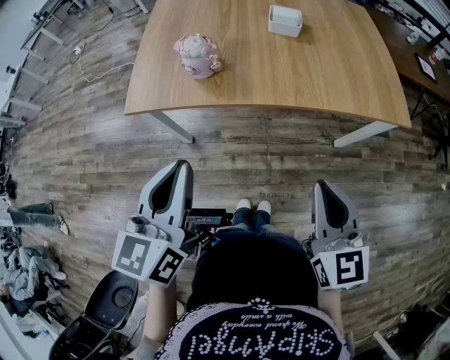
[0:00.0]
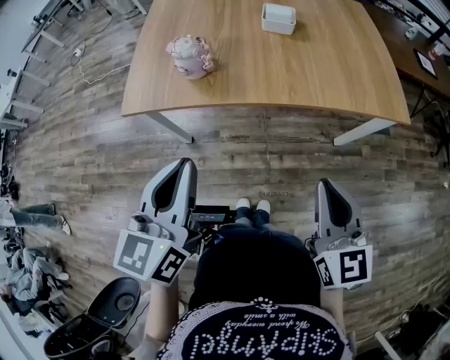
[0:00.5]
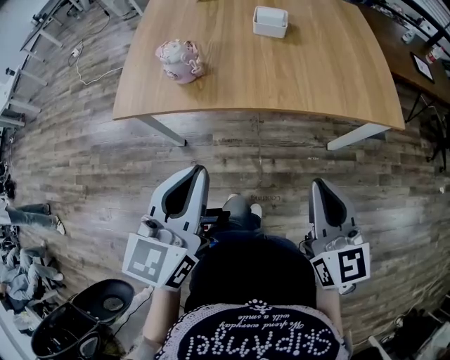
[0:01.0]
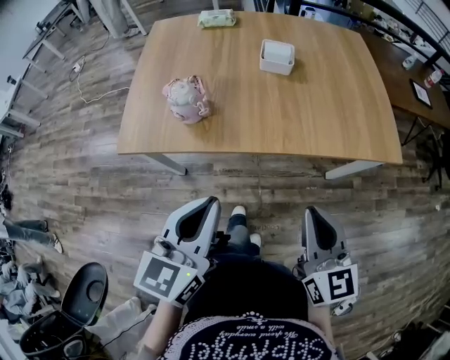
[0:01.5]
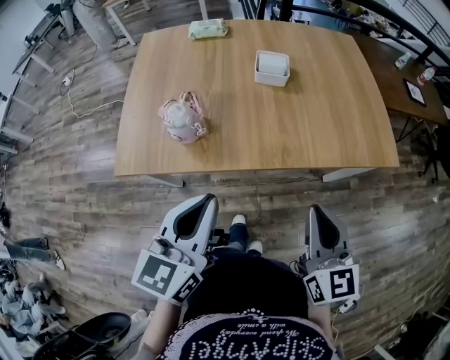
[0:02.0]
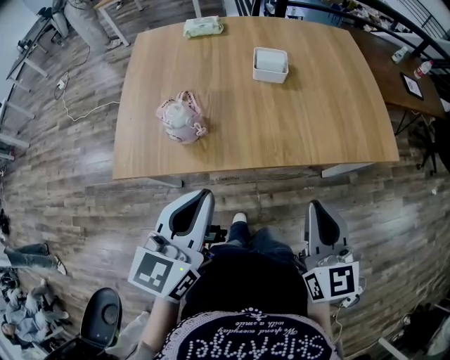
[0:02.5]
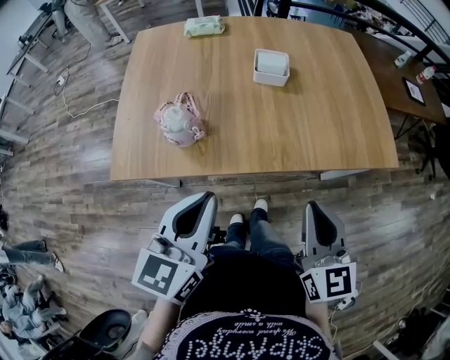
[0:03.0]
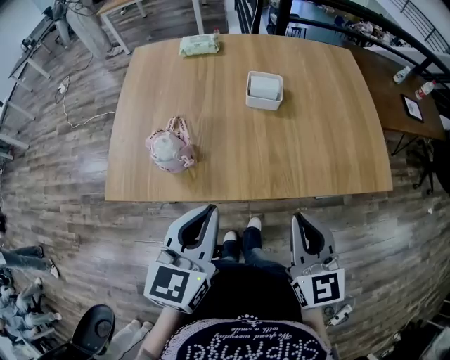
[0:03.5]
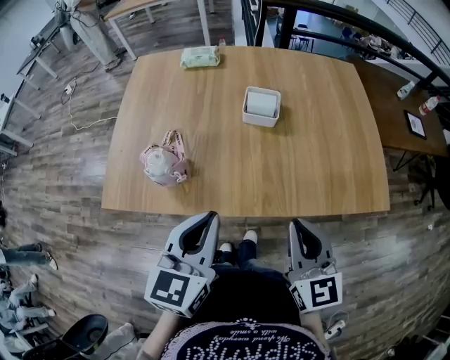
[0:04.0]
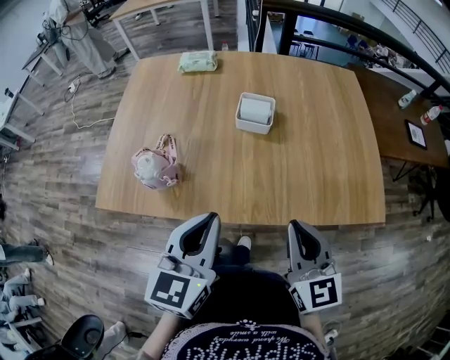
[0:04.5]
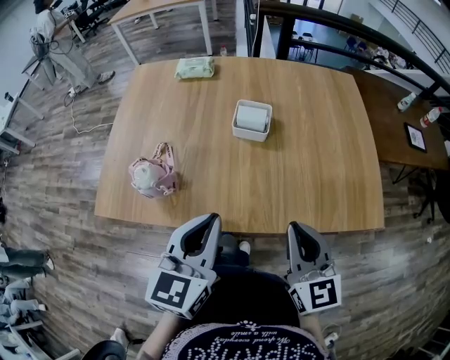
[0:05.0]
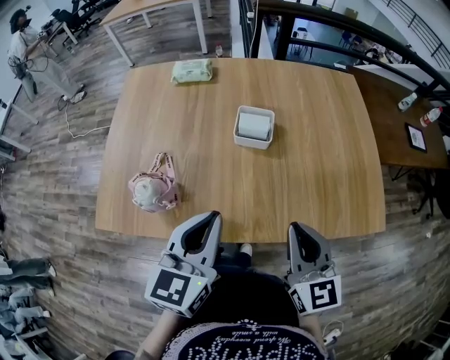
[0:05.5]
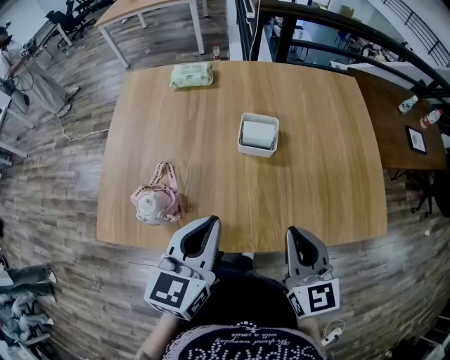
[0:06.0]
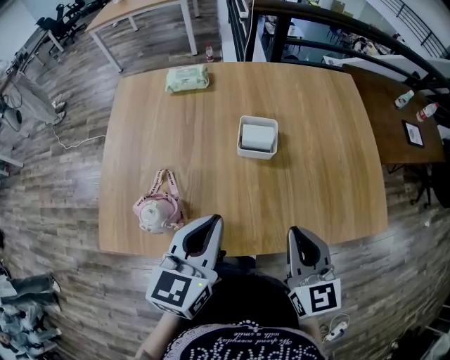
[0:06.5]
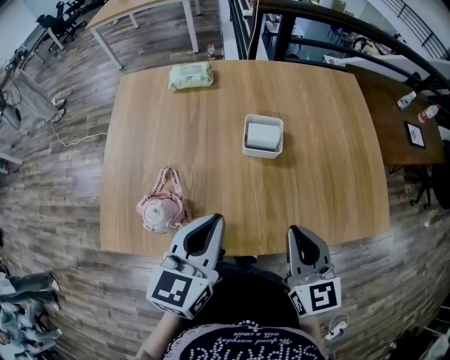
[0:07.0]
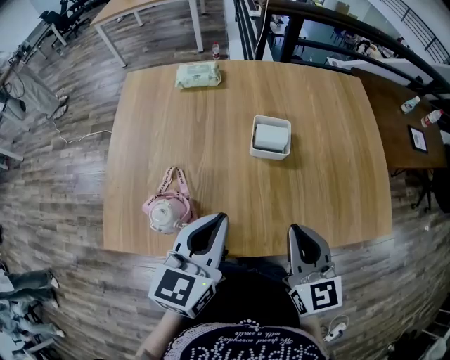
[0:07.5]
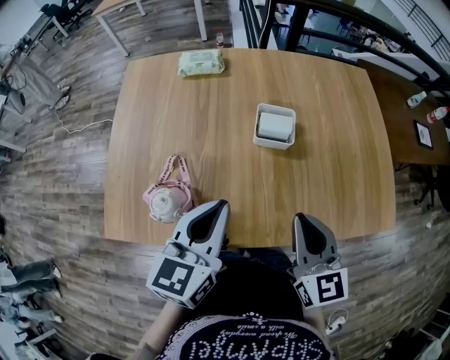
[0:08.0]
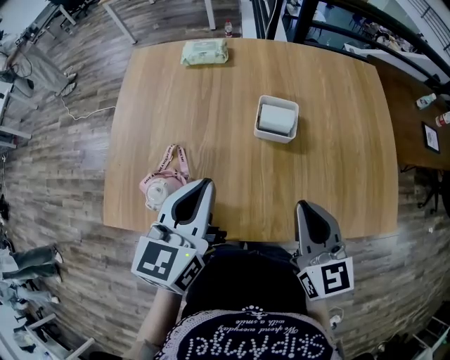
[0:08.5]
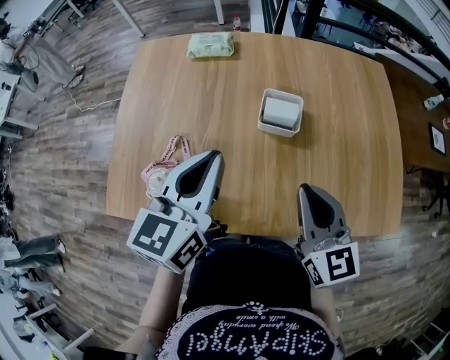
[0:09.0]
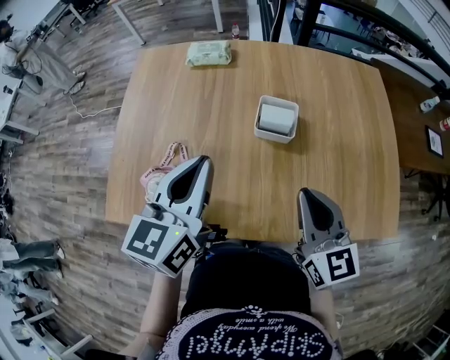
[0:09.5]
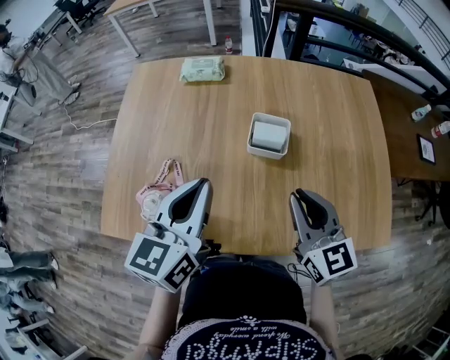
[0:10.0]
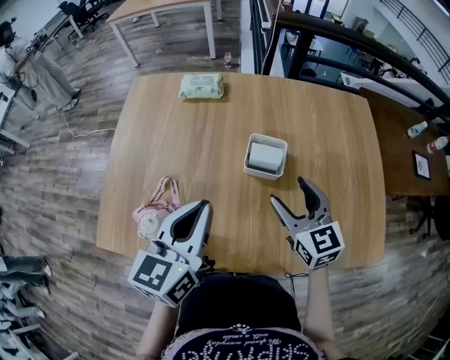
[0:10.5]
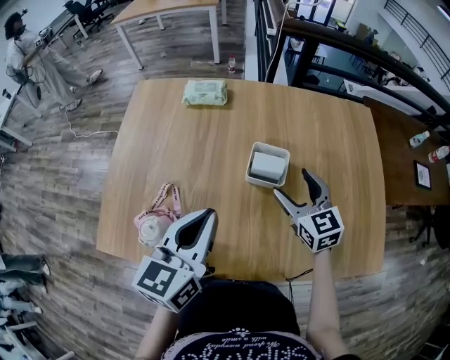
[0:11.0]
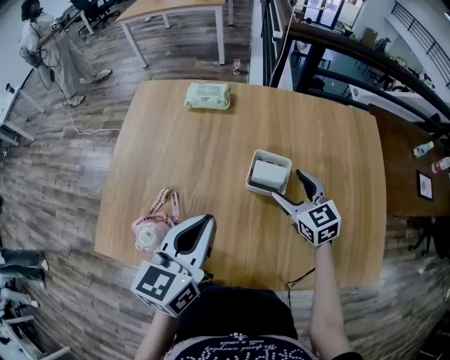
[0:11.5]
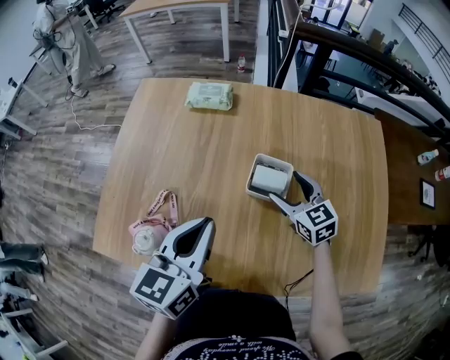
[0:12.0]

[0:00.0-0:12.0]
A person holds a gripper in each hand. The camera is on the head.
0:00.0 to 0:02.0: The left gripper moves forward and to the right, some 15 cm. The right gripper travels forward by some 10 cm.
0:02.0 to 0:04.0: The left gripper goes about 10 cm forward and to the right; the right gripper is displaced forward by about 10 cm.
0:04.0 to 0:06.0: The grippers both shift forward by about 10 cm.
0:06.0 to 0:08.0: The grippers move only a little.
0:08.0 to 0:10.0: The left gripper ends up about 5 cm from where it was. Meanwhile the right gripper goes approximately 5 cm forward.
0:10.0 to 0:12.0: The right gripper is displaced forward and downward by about 20 cm, and opens.

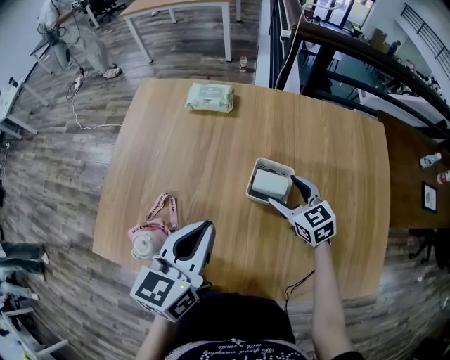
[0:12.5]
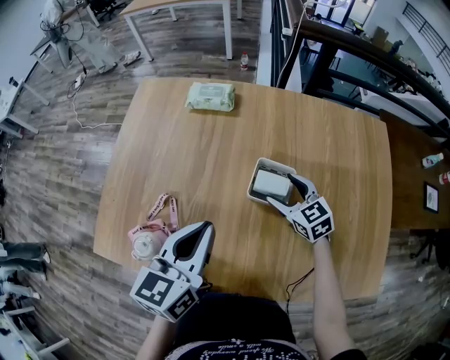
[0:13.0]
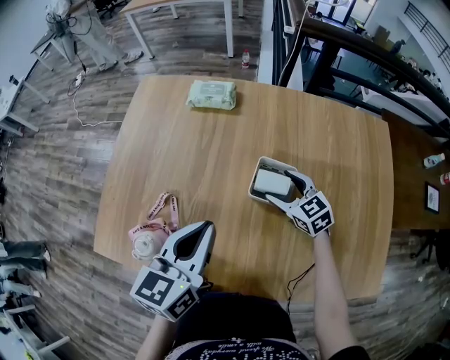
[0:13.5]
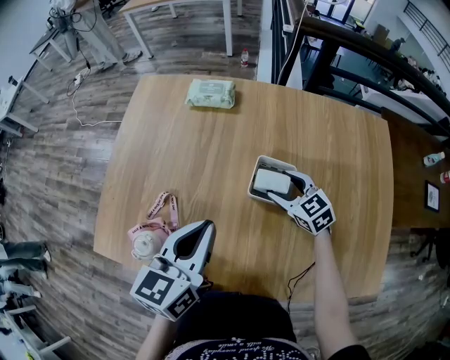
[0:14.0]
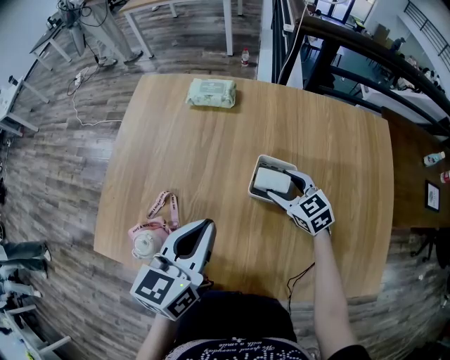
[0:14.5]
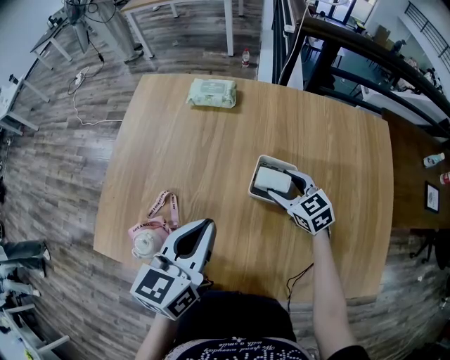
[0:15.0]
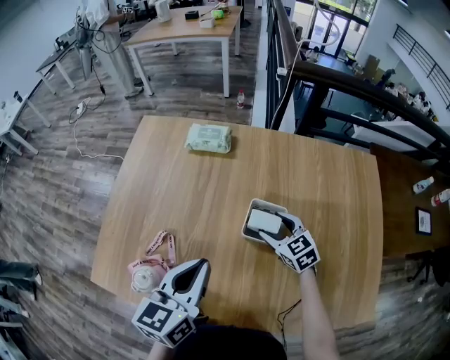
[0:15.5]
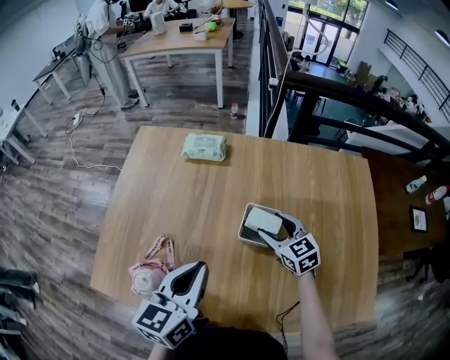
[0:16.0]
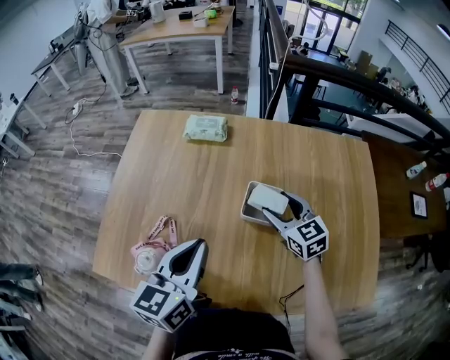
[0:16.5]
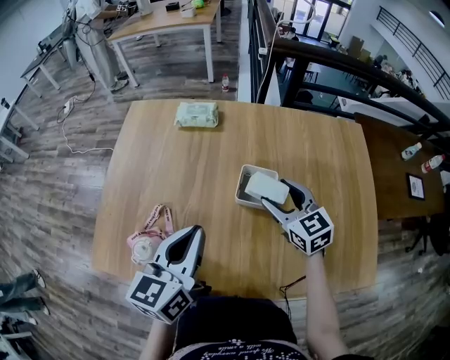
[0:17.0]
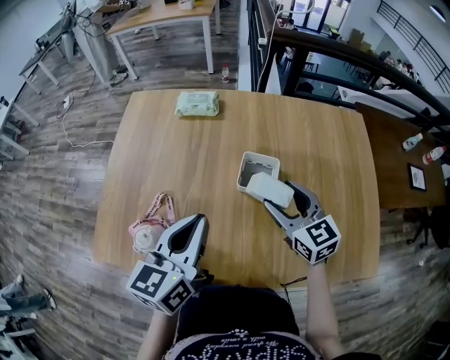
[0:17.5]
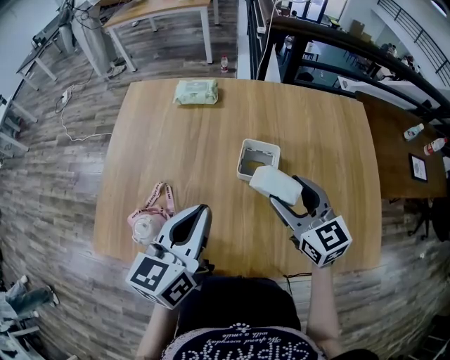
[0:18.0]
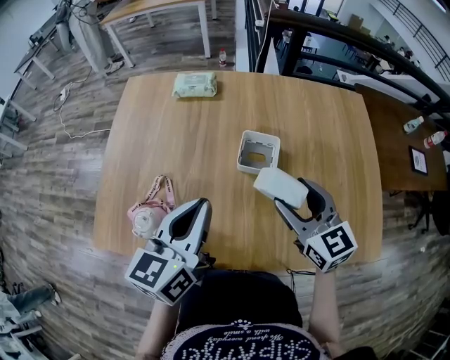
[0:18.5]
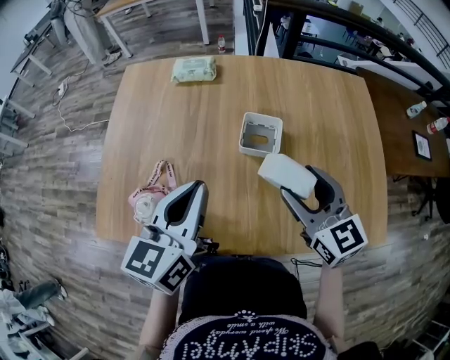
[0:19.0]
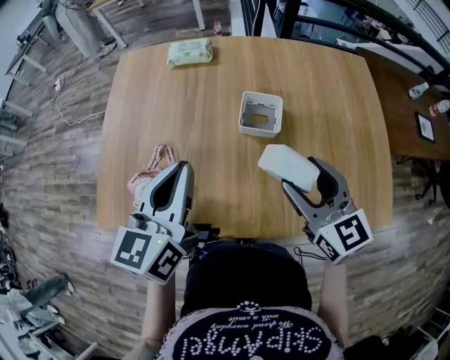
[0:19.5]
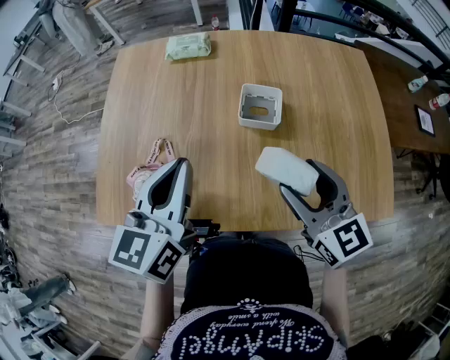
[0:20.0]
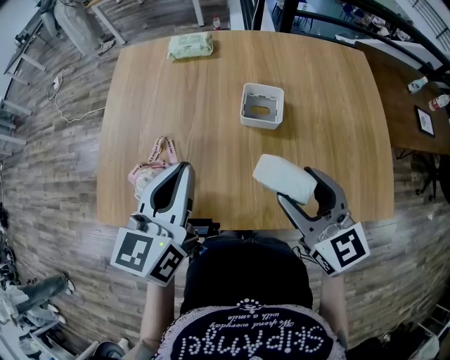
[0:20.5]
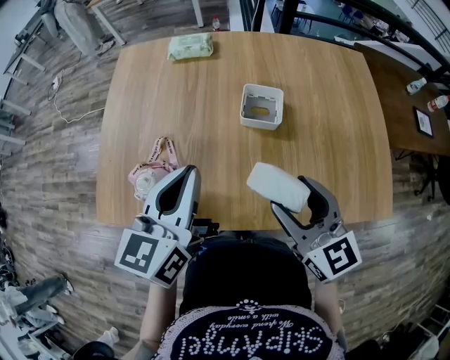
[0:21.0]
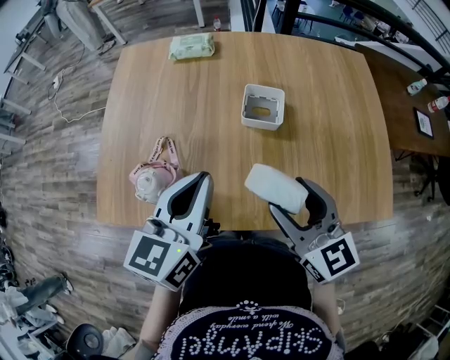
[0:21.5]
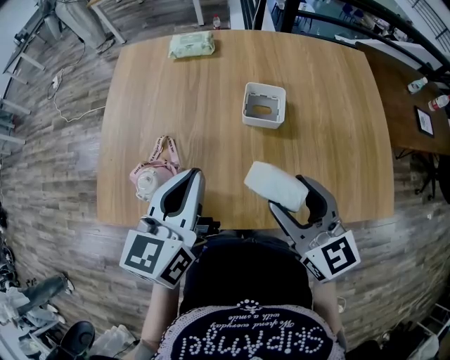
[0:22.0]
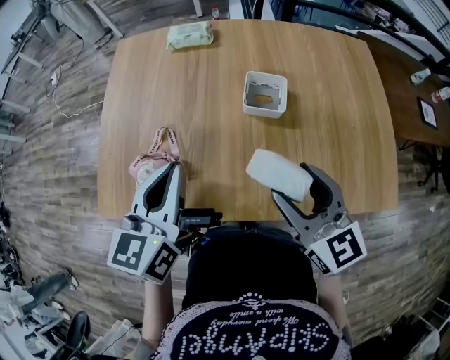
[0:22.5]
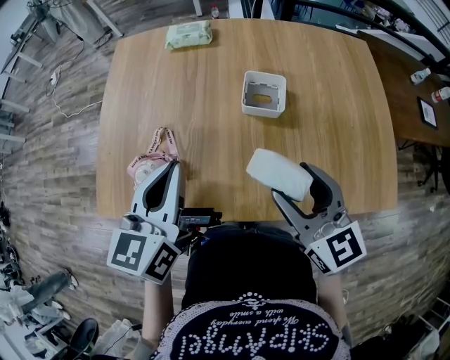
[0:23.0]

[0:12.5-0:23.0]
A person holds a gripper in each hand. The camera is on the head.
0:12.5 to 0:14.5: The grippers move only a little.
0:14.5 to 0:16.5: The right gripper is displaced upward by some 10 cm.
0:16.5 to 0:19.0: The right gripper is displaced backward and upward by about 20 cm.
0:19.0 to 0:21.0: The right gripper is displaced backward by about 10 cm.
0:21.0 to 0:23.0: The grippers make only small movements.

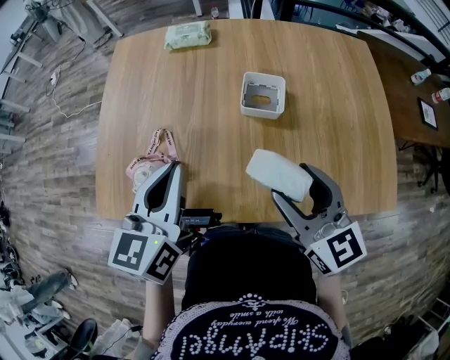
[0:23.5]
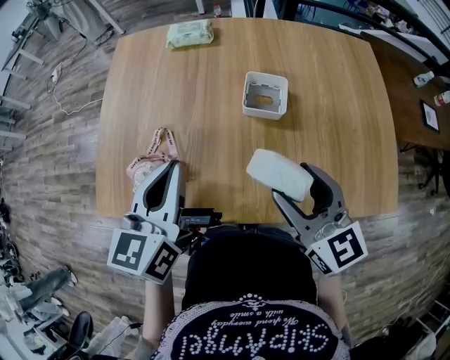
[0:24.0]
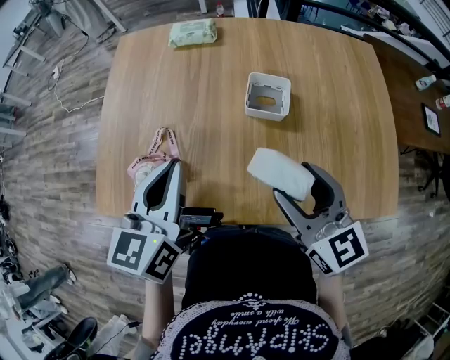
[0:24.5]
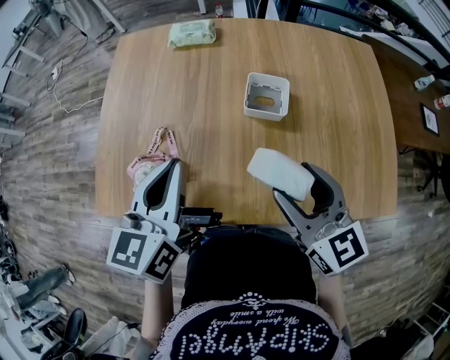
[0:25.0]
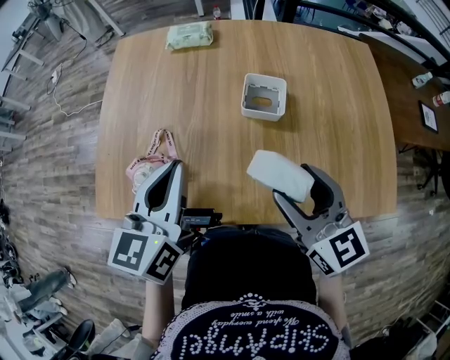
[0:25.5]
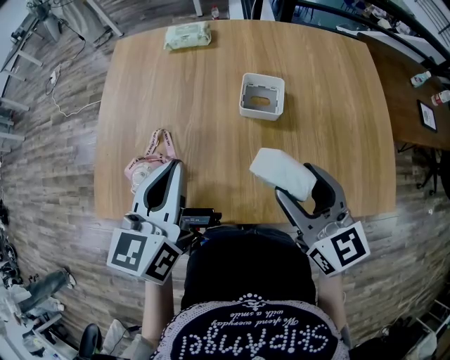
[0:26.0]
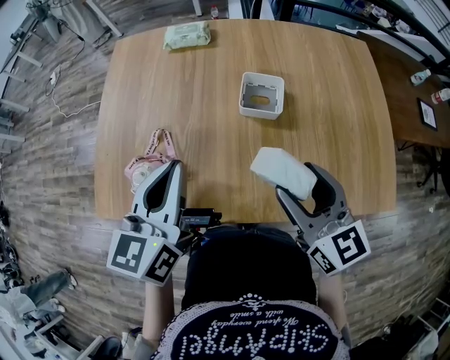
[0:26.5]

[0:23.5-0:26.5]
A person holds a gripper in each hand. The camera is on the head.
0:23.5 to 0:26.5: Both grippers stay about where they are.

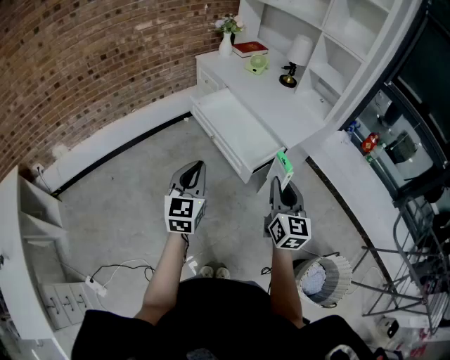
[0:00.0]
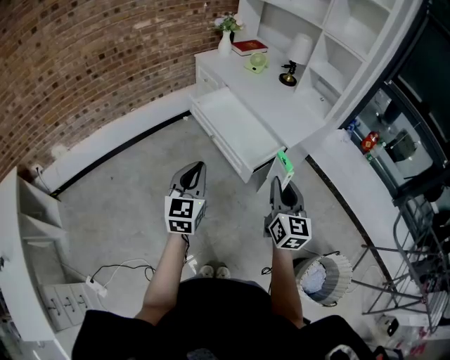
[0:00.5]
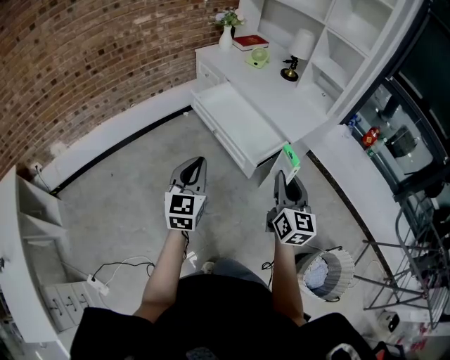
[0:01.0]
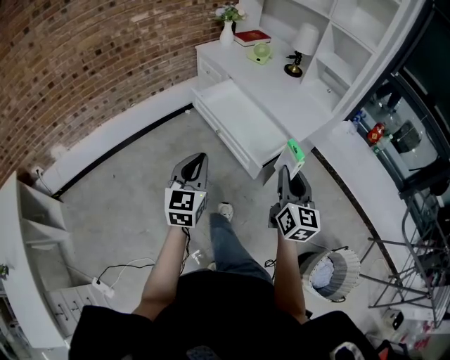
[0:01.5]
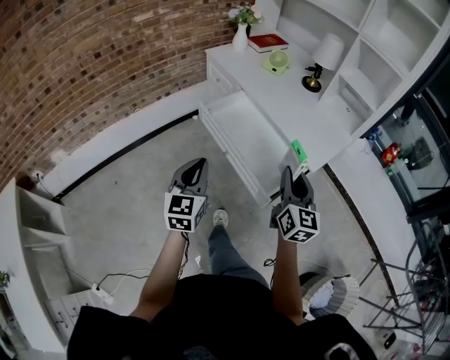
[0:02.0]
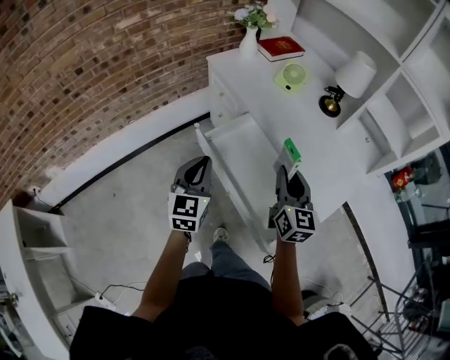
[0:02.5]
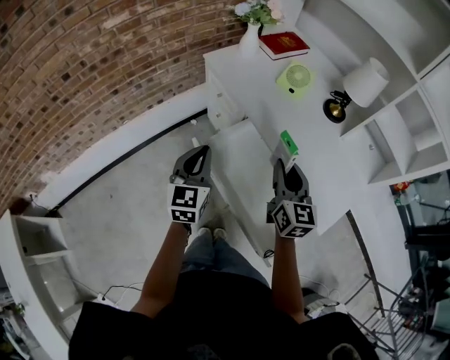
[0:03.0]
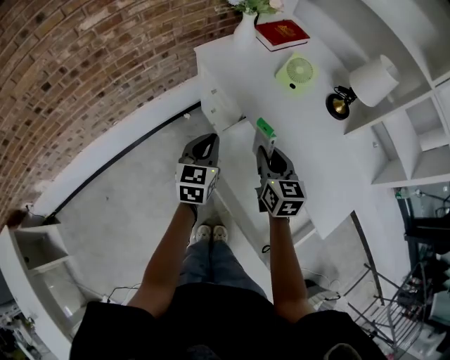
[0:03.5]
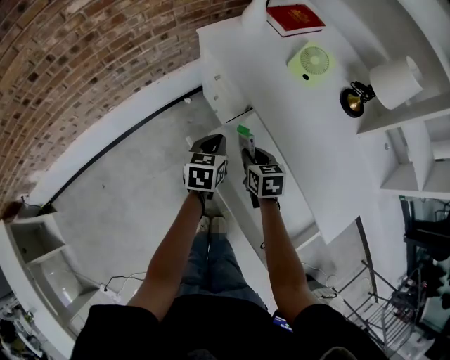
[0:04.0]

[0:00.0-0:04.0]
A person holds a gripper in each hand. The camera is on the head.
0:00.0 to 0:02.0: Both grippers travel together forward, about 20 cm.
0:02.0 to 0:04.0: Both grippers are carried forward, some 50 cm. Both grippers travel together downward, approximately 20 cm. The left gripper swivels some 30 degrees. The right gripper points its fingers approximately 40 degrees further downward.
